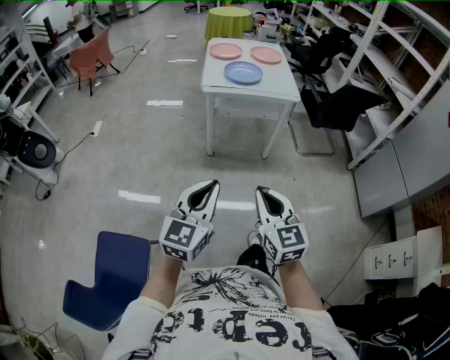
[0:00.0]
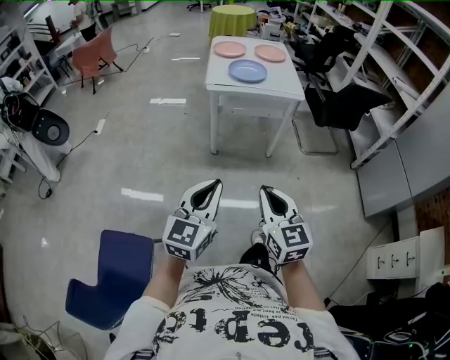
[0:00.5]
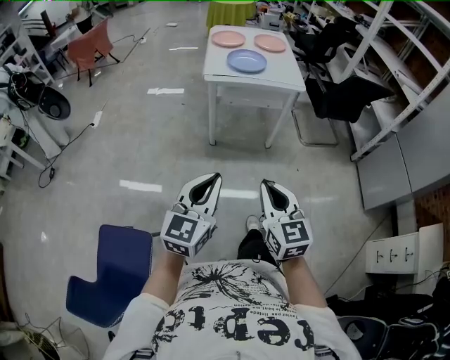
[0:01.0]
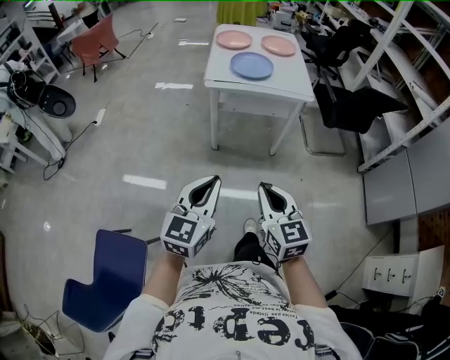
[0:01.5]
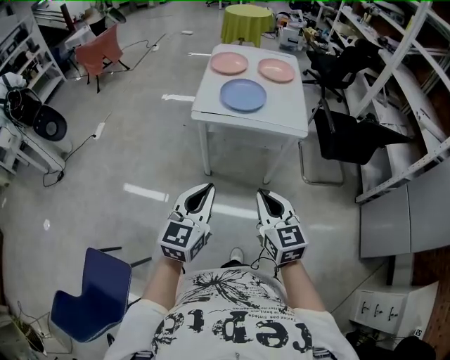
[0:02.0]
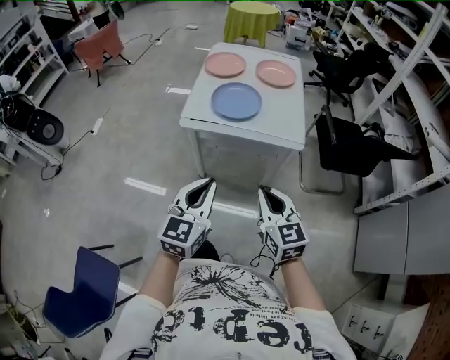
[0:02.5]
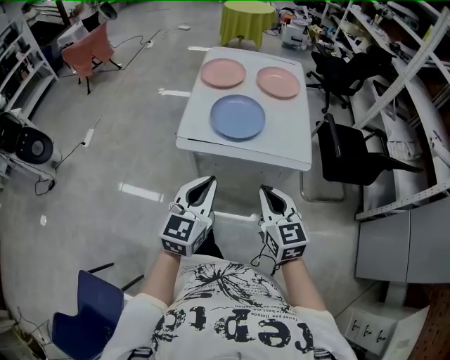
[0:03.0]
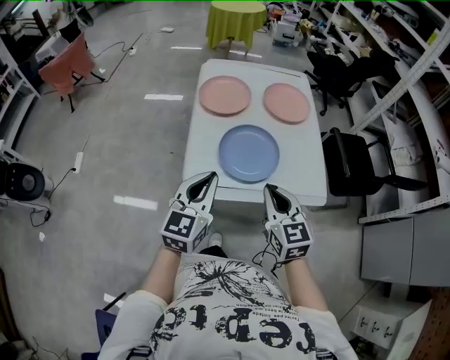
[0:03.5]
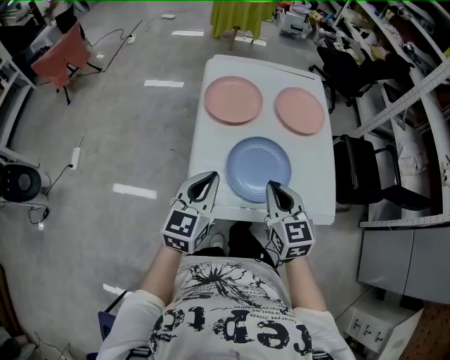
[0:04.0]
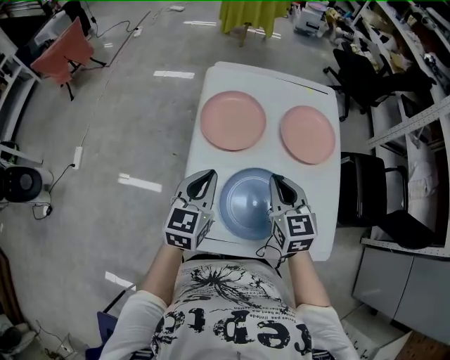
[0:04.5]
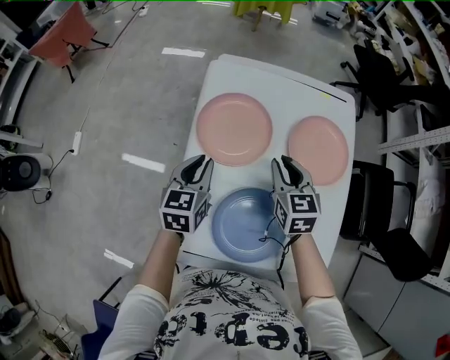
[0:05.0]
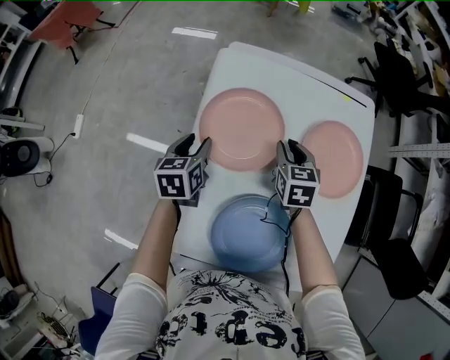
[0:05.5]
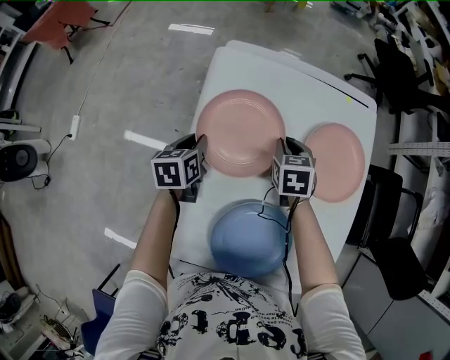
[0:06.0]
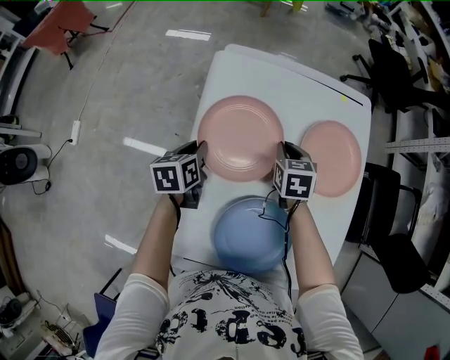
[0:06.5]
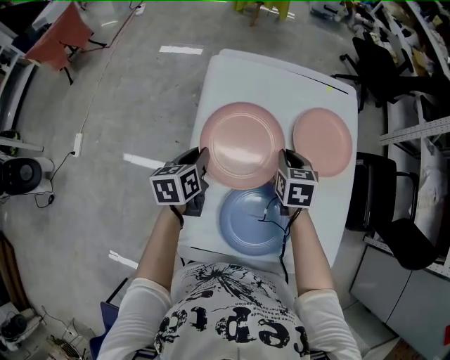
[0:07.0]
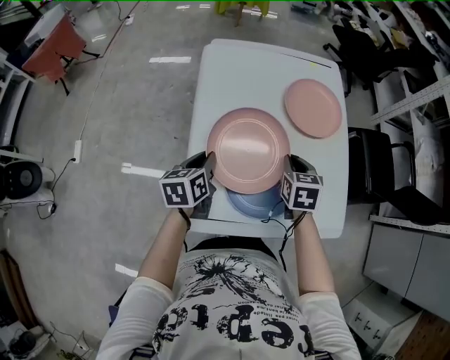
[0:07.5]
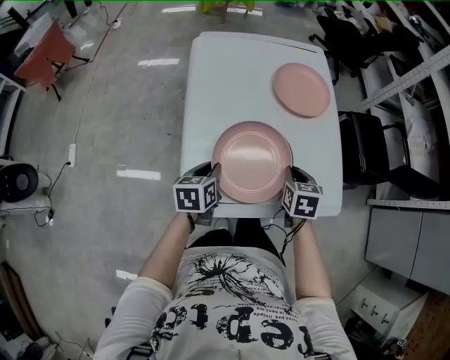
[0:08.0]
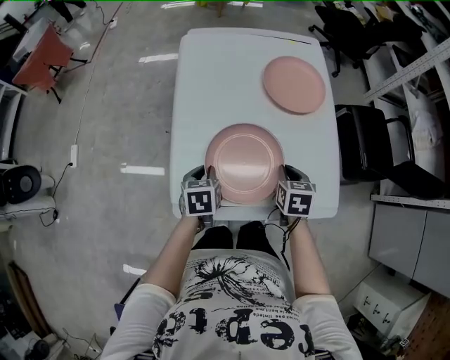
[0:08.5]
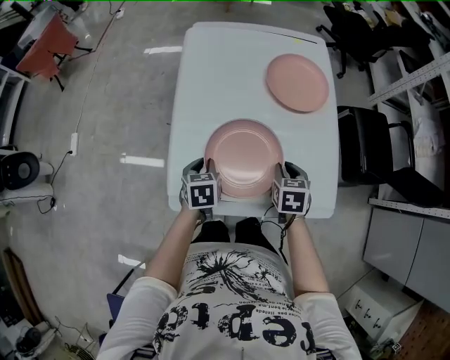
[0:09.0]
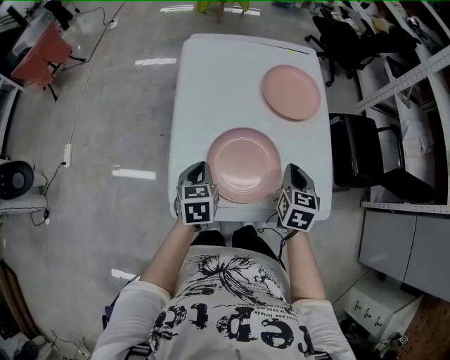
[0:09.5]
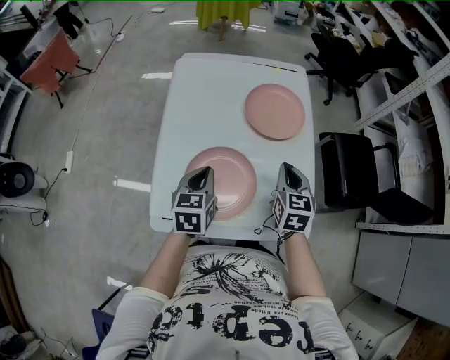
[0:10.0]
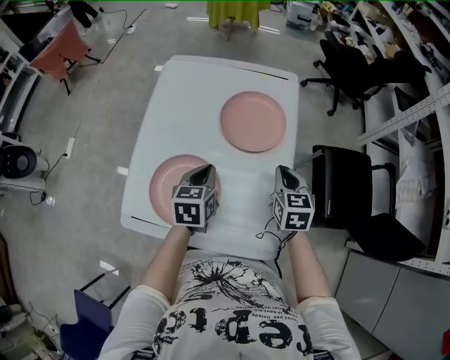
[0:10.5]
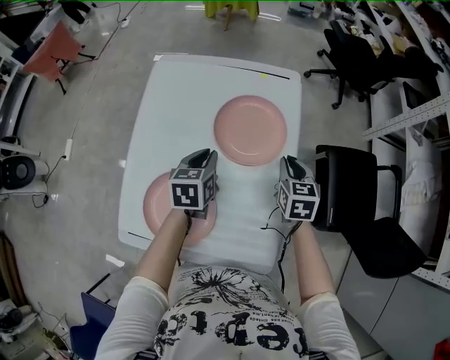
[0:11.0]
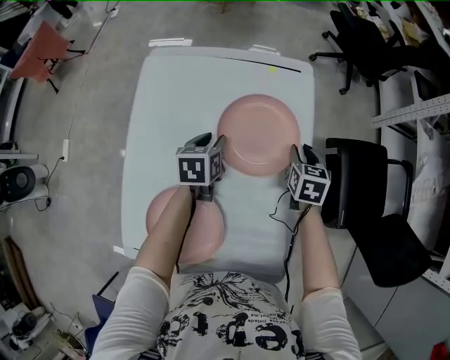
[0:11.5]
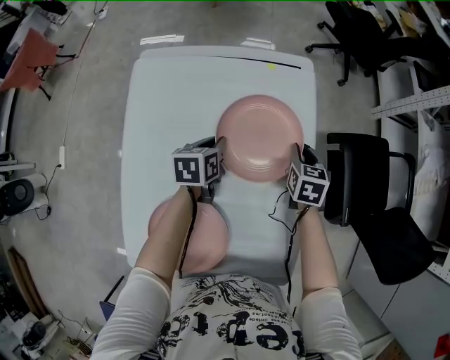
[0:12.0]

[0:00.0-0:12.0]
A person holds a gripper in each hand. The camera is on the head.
0:00.0 to 0:02.0: The grippers both shift forward by approximately 30 cm.
0:02.0 to 0:04.0: The pair of grippers is taken forward, approximately 60 cm.
0:04.0 to 0:06.0: The two grippers travel together, forward, about 40 cm. Both grippers travel together downward, roughly 20 cm. The right gripper angles its fingers downward, by some 30 degrees, while the left gripper points its fingers approximately 30 degrees further downward, and opens and closes again.
0:06.0 to 0:08.0: The grippers both shift backward by roughly 35 cm.
0:08.0 to 0:10.0: The left gripper goes roughly 15 cm to the right, upward and forward; the right gripper shifts roughly 15 cm to the right, forward and upward, and rotates roughly 20 degrees.
0:10.0 to 0:12.0: Both grippers travel together forward and downward, approximately 35 cm. The left gripper swivels some 20 degrees.

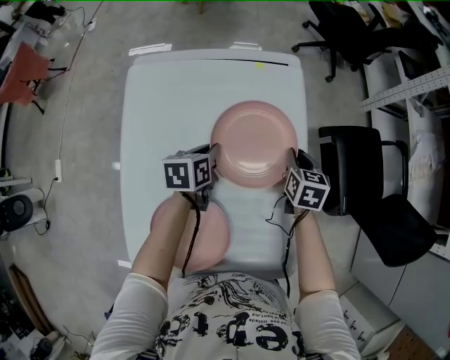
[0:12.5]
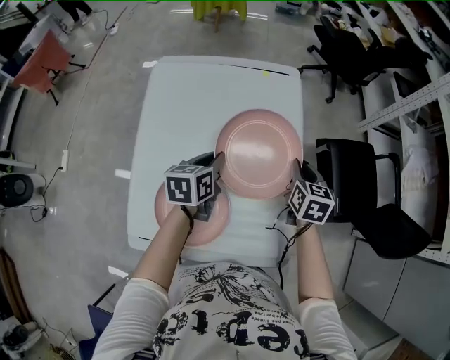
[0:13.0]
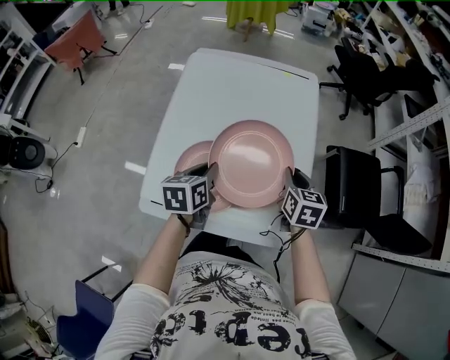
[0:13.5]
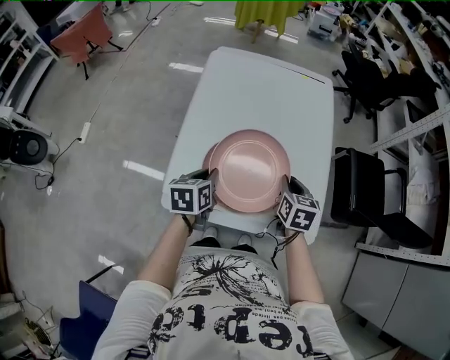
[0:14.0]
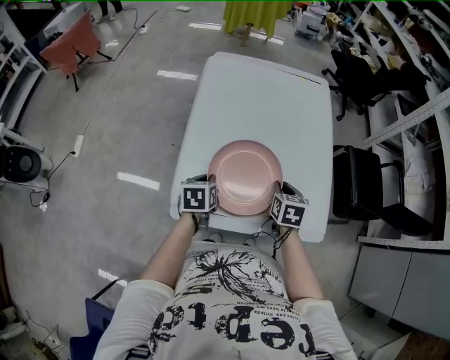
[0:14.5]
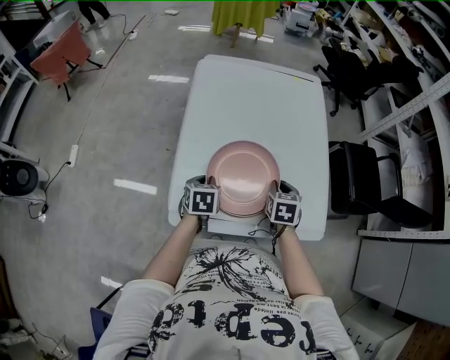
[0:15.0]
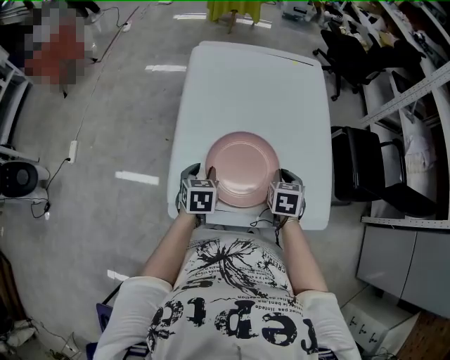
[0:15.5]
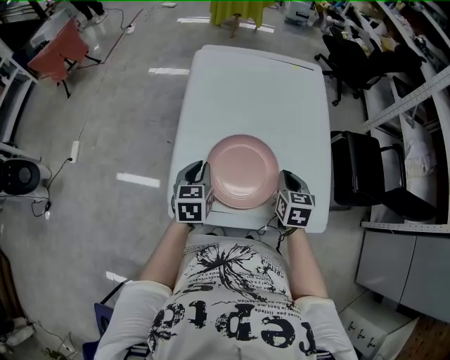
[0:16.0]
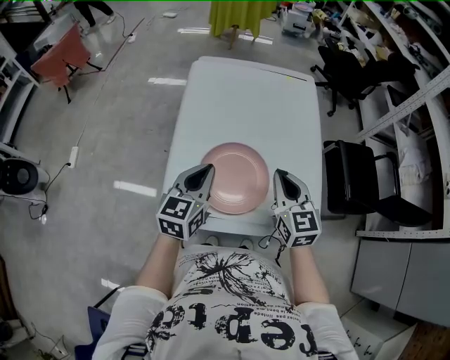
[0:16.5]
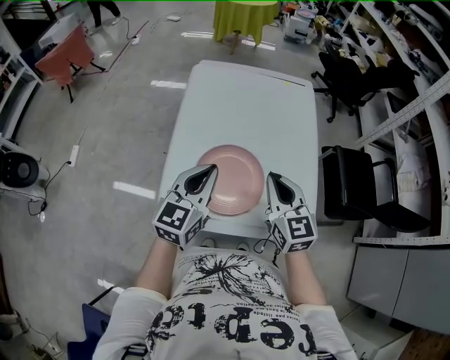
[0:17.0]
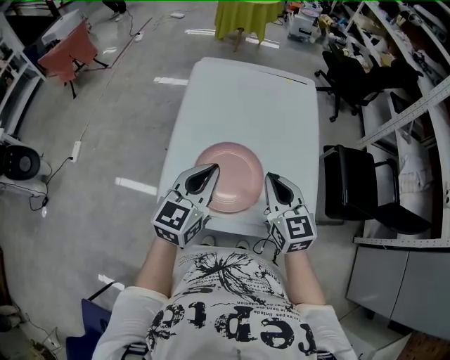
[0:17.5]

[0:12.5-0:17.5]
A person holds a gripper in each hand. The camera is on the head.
0:12.5 to 0:15.0: Both grippers move backward and to the left, roughly 40 cm. The left gripper changes its angle by roughly 20 degrees.
0:15.0 to 0:17.5: The right gripper travels upward by about 20 cm, and angles its fingers upward, by approximately 30 degrees. The left gripper moves upward and to the right, roughly 25 cm, and points its fingers roughly 40 degrees further upward.

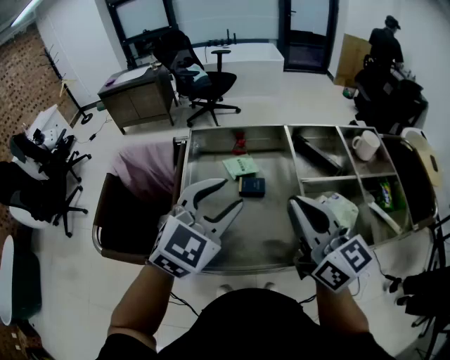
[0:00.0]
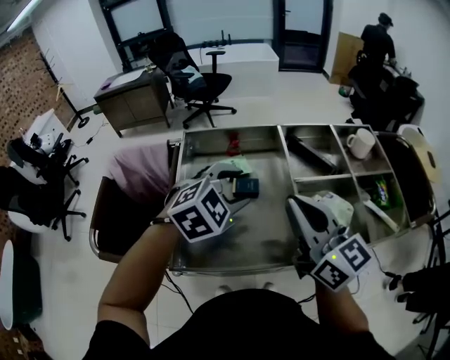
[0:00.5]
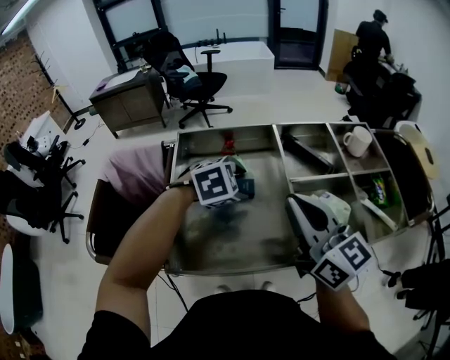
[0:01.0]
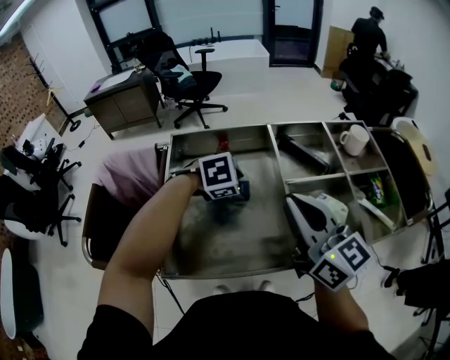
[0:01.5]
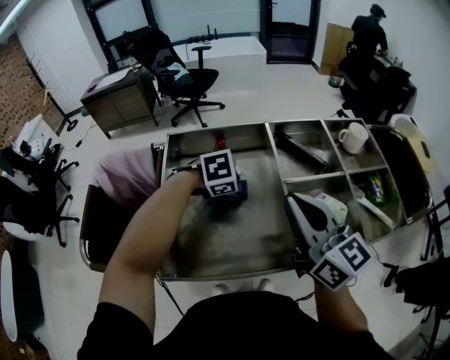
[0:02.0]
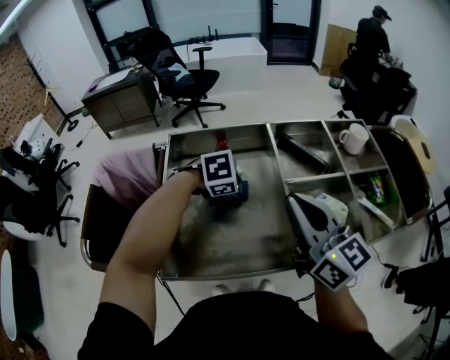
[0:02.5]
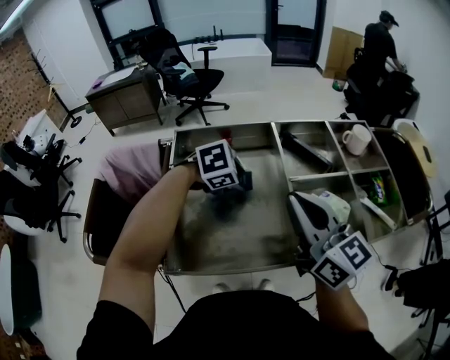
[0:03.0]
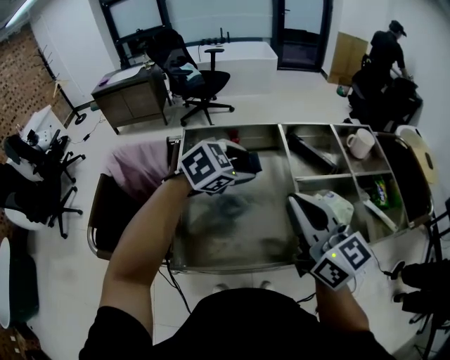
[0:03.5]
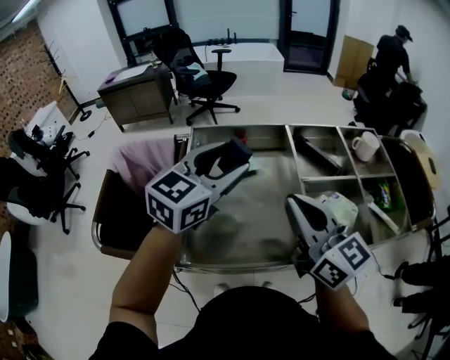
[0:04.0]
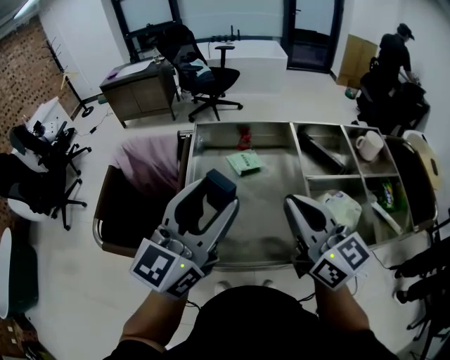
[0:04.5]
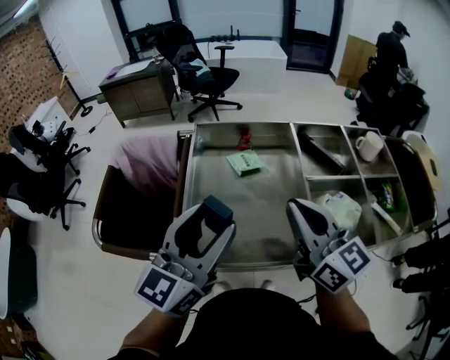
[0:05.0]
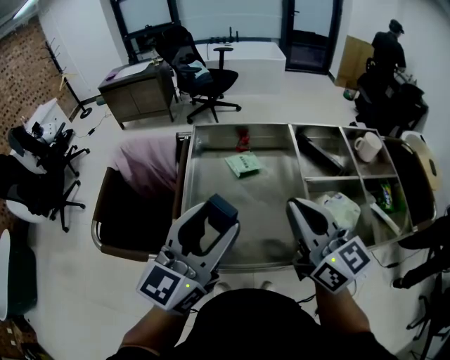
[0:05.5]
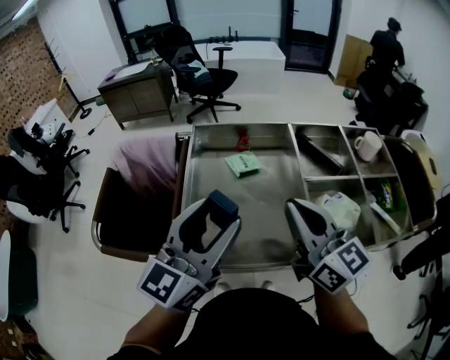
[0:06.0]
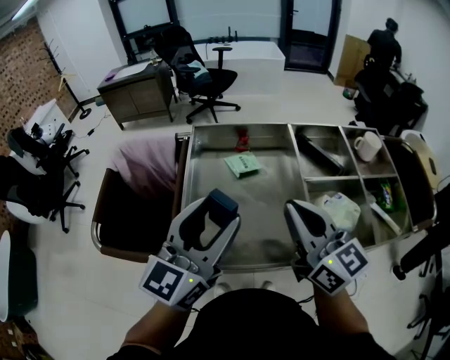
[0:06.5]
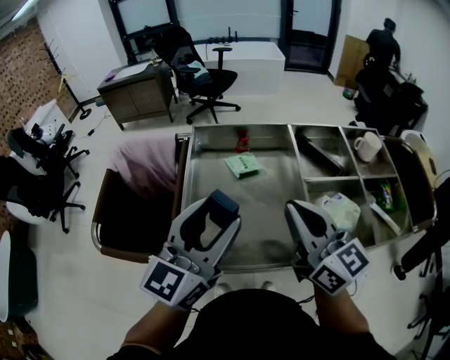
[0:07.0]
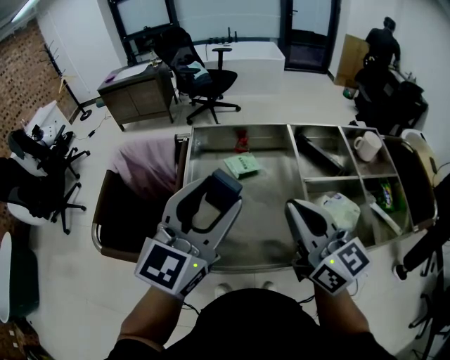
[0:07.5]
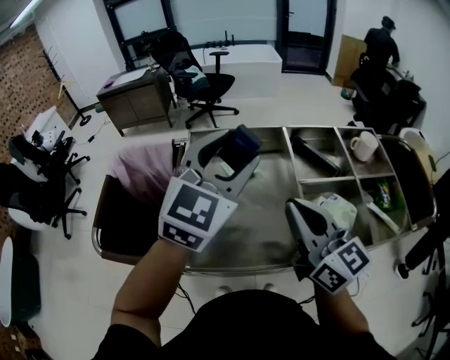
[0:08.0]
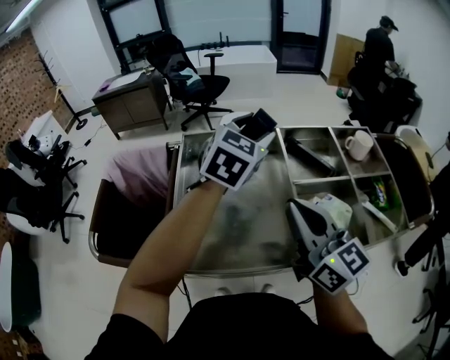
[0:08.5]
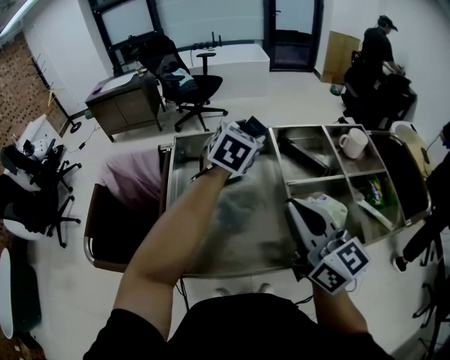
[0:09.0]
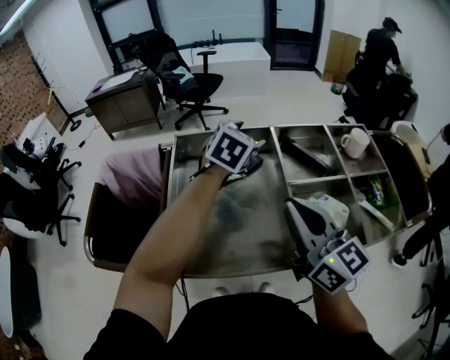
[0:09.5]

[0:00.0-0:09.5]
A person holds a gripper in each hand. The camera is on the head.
0:00.0 to 0:02.0: The left gripper moves downward, approximately 20 cm, and tips its fingers downward by some 50 degrees.
0:02.0 to 0:04.0: The left gripper moves upward, approximately 20 cm, and tips its fingers upward by about 60 degrees; the right gripper ends up roughly 5 cm from where it was.
0:04.0 to 0:05.5: The left gripper travels backward by about 10 cm, and rotates about 20 degrees.
0:05.5 to 0:07.5: There are only small adjustments of the grippers.
0:07.5 to 0:09.5: The left gripper travels forward, to the right and downward by some 25 cm, and tips its fingers downward by roughly 30 degrees.
